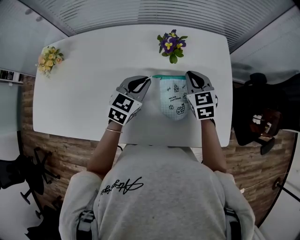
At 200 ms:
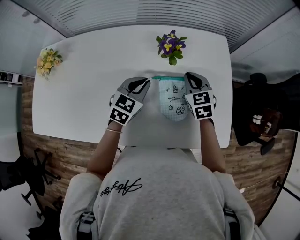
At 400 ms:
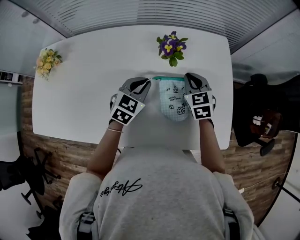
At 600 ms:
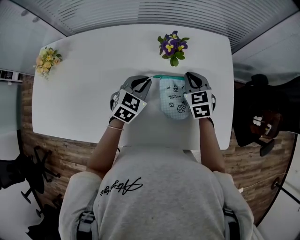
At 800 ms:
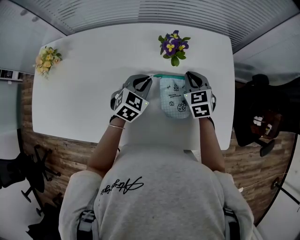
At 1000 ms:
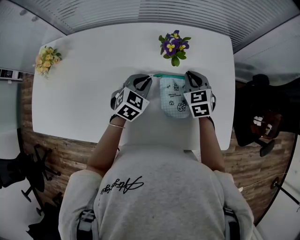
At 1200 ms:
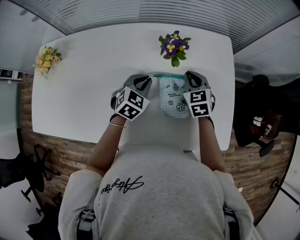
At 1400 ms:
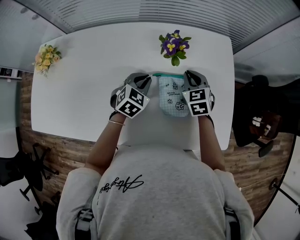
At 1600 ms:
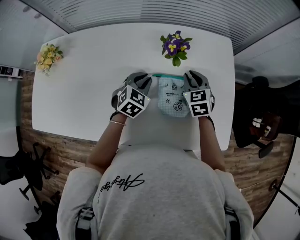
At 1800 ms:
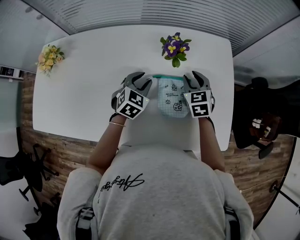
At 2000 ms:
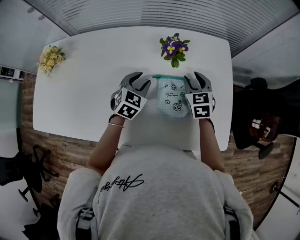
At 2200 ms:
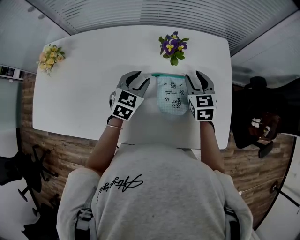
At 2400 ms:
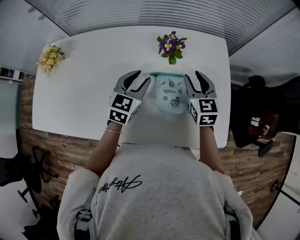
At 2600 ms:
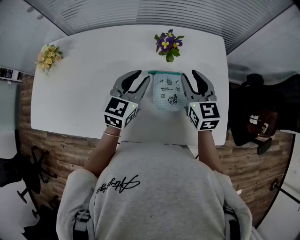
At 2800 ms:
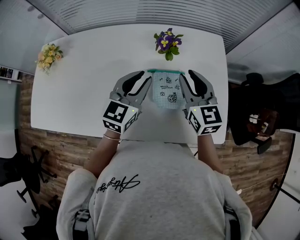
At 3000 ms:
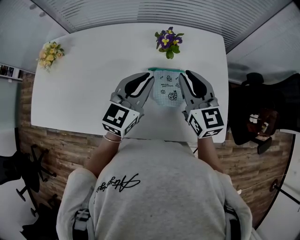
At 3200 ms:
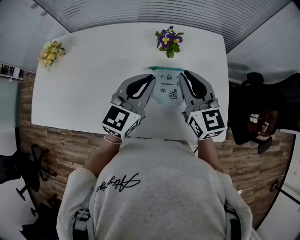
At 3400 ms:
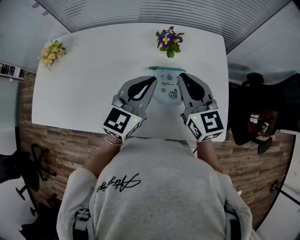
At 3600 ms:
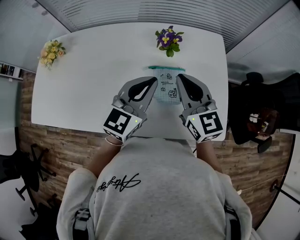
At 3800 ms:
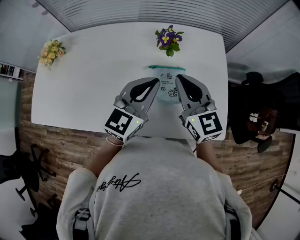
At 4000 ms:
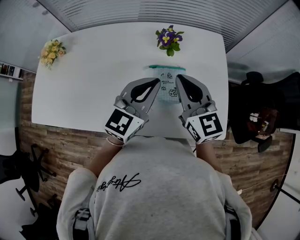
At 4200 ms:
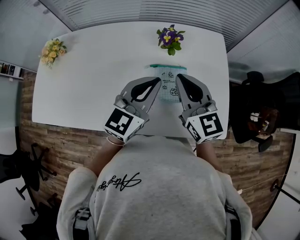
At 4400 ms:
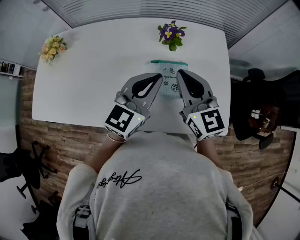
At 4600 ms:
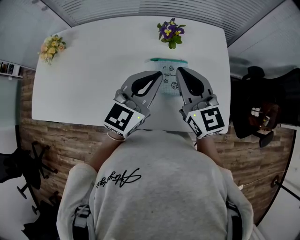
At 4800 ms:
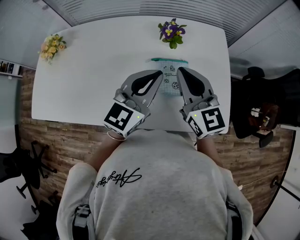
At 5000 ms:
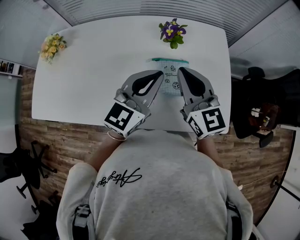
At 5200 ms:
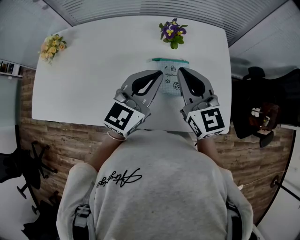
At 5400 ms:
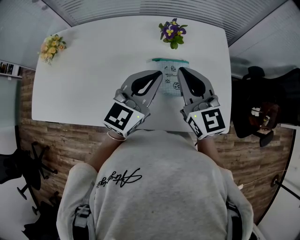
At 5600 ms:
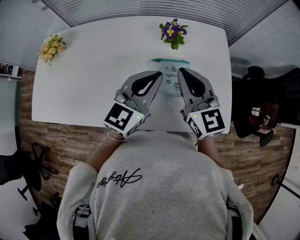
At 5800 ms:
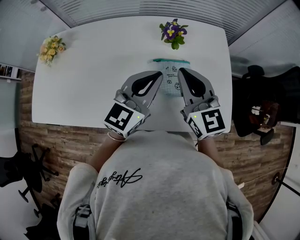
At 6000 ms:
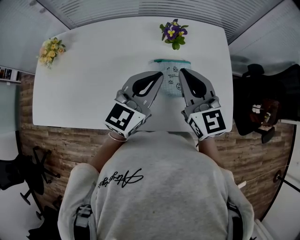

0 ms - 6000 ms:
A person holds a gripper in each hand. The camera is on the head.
0 ms - 1600 ms: The left gripper goes about 5 cm downward.
1600 ms - 3000 ms: Both grippers move upward and backward, roughly 20 cm. The left gripper tips its fingers upward by approximately 30 degrees; the right gripper changes its angle by roughly 30 degrees.
3000 ms - 4400 ms: The left gripper shifts by some 5 cm. The right gripper shifts by approximately 5 cm.
4400 ms - 6000 ms: There are only small adjustments of the grippers.

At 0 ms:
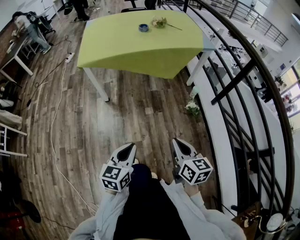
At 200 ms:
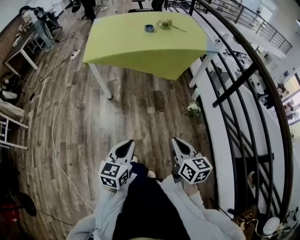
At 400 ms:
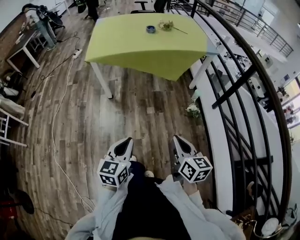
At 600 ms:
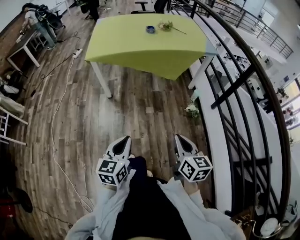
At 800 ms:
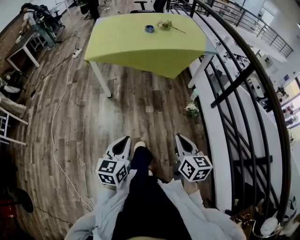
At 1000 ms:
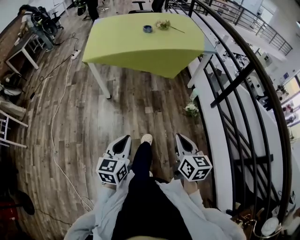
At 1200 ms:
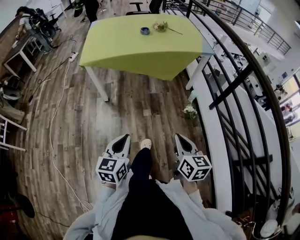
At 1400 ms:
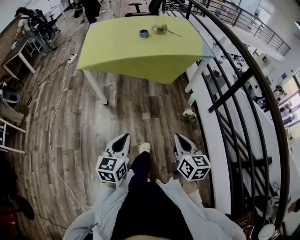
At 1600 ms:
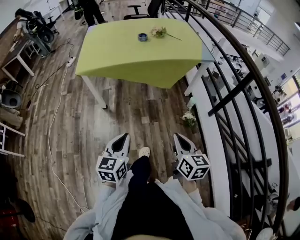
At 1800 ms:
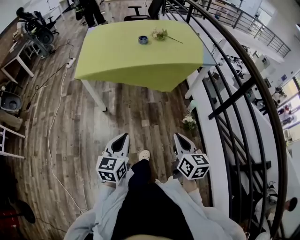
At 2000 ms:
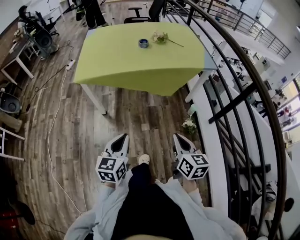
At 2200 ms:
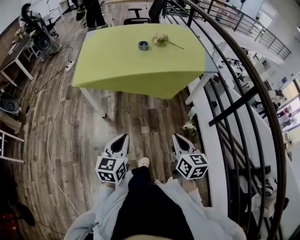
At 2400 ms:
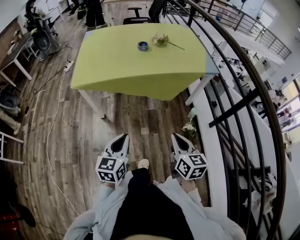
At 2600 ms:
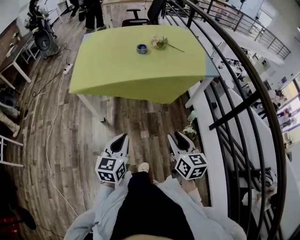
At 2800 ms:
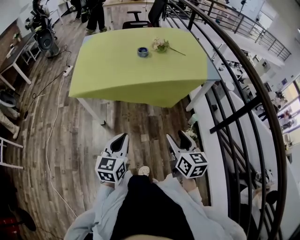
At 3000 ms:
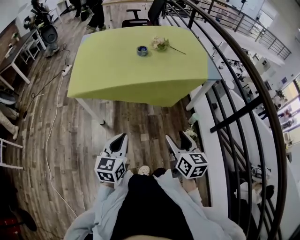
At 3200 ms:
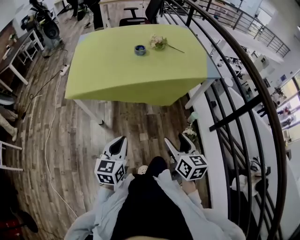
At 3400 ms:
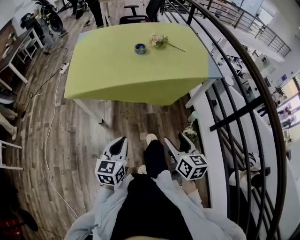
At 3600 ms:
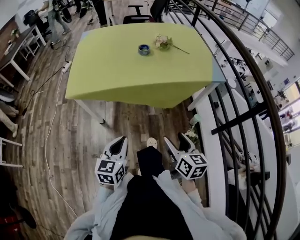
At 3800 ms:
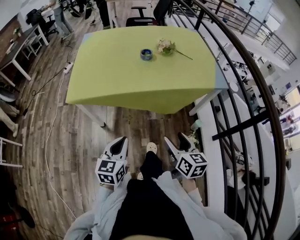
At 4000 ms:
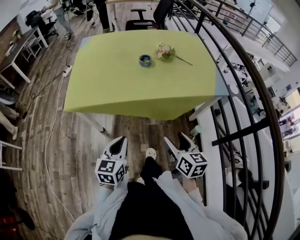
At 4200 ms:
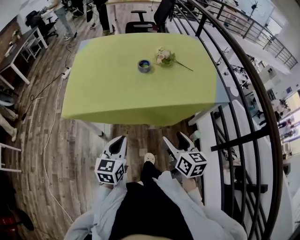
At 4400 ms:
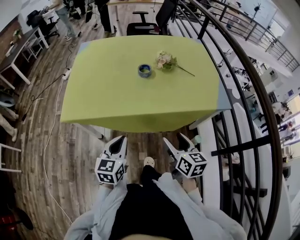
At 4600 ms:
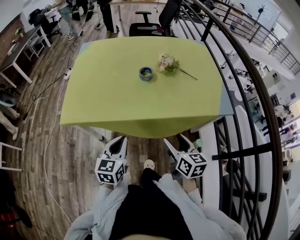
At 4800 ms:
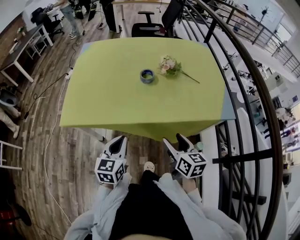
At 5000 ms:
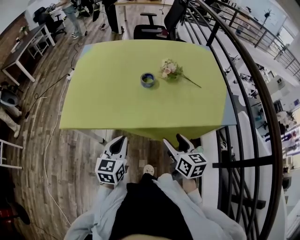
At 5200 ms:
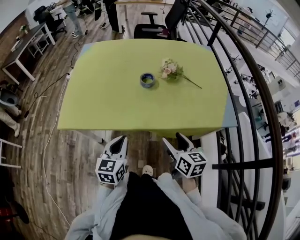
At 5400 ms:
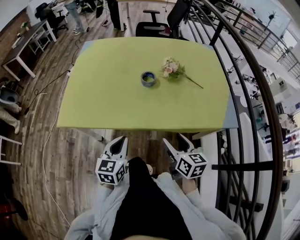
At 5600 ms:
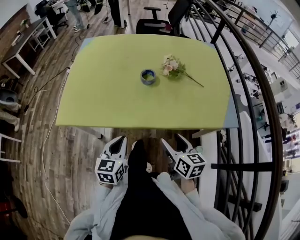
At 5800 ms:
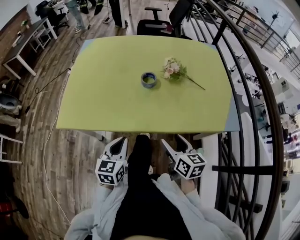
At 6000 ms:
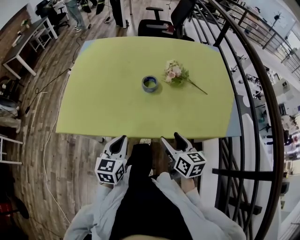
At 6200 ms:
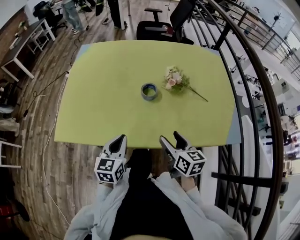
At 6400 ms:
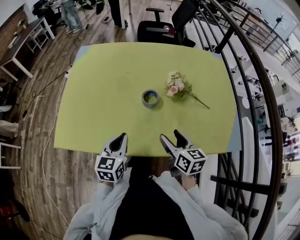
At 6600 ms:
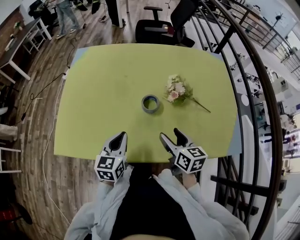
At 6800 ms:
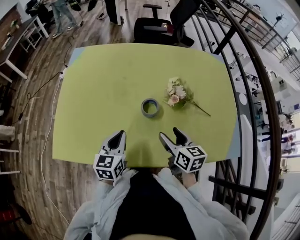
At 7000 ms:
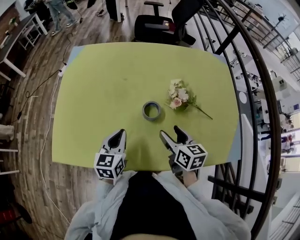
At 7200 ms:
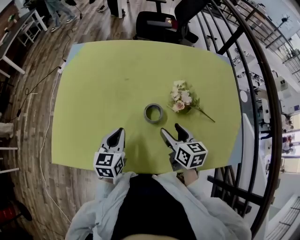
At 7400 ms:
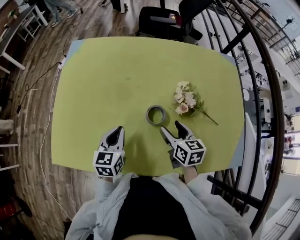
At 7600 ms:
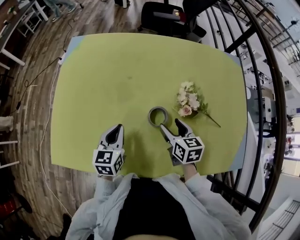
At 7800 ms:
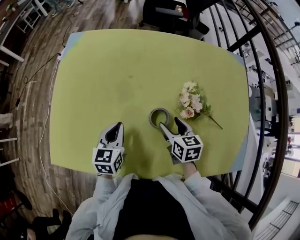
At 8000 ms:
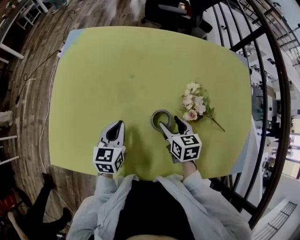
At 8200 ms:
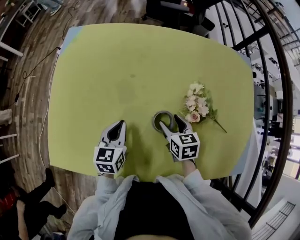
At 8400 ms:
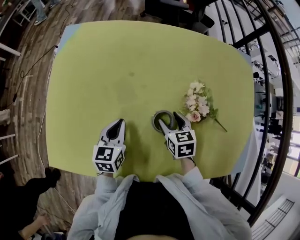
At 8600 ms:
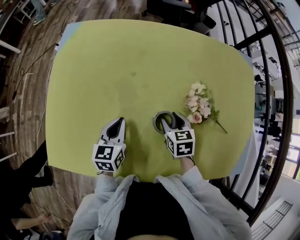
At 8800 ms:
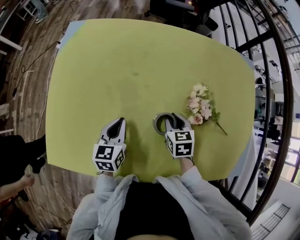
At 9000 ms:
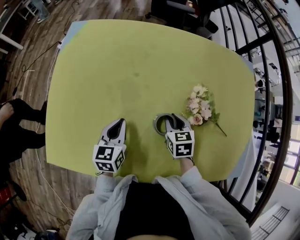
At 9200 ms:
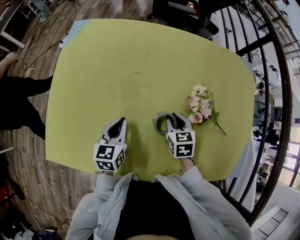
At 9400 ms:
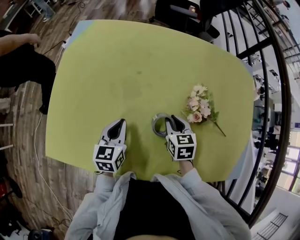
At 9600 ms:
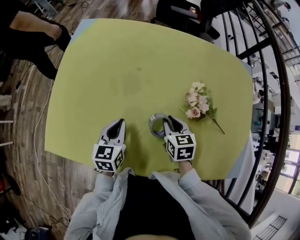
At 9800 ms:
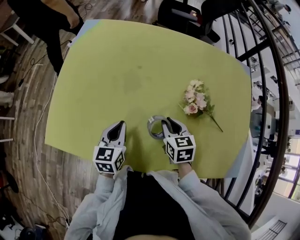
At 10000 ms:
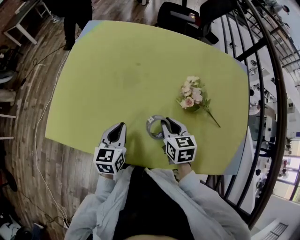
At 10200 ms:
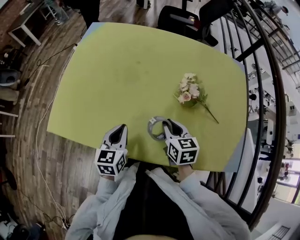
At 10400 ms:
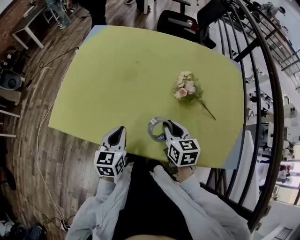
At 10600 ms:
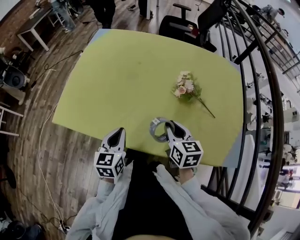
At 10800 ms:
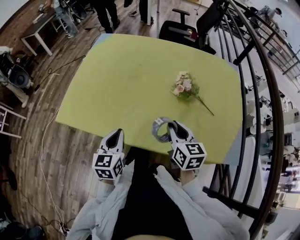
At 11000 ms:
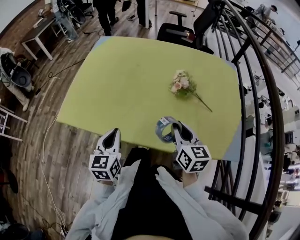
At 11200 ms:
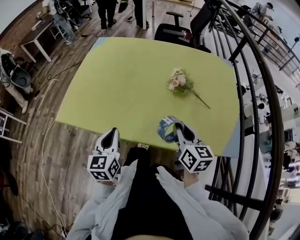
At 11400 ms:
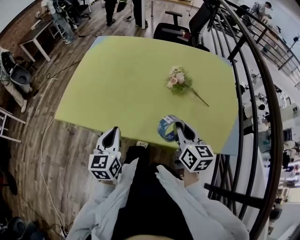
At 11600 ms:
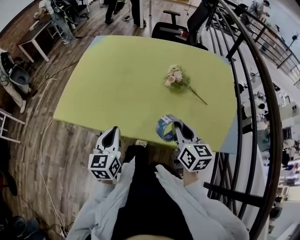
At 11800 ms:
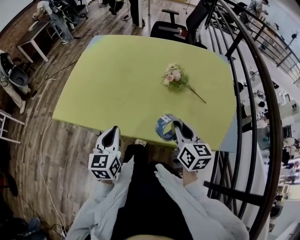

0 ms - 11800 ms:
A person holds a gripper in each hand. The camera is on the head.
0 ms - 1400 ms: The left gripper moves about 5 cm, while the right gripper is displaced to the right by some 5 cm.
1400 ms - 3000 ms: The grippers both shift forward by roughly 25 cm. The right gripper opens up.
3000 ms - 4400 ms: The grippers both shift forward by some 20 cm.
4400 ms - 6000 ms: The grippers both shift forward by approximately 15 cm.
6000 ms - 7400 ms: Both grippers travel together forward, approximately 25 cm.
7400 ms - 8800 ms: The right gripper is displaced downward and forward by some 15 cm, changes its angle by roughly 20 degrees, and closes; the left gripper shifts some 10 cm forward and downward.
8800 ms - 10400 ms: The right gripper travels backward and upward by approximately 20 cm. Meanwhile the left gripper shifts some 20 cm backward.
10400 ms - 11800 ms: The right gripper is displaced backward, upward and to the right by roughly 15 cm. Meanwhile the left gripper is displaced backward and upward by approximately 10 cm.

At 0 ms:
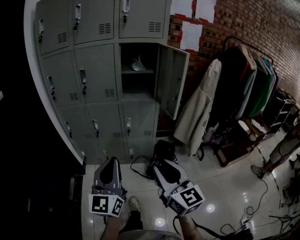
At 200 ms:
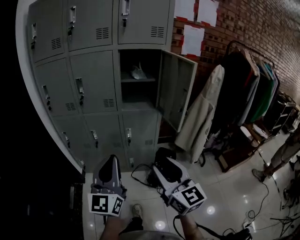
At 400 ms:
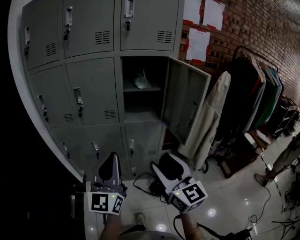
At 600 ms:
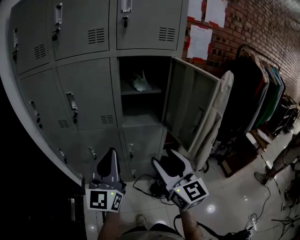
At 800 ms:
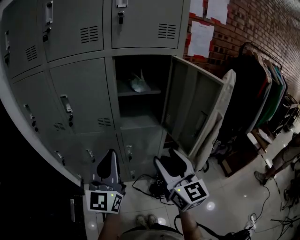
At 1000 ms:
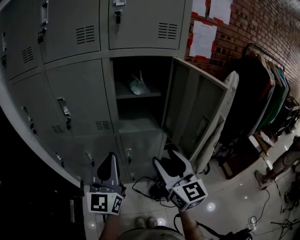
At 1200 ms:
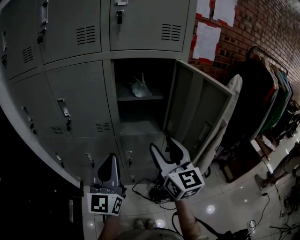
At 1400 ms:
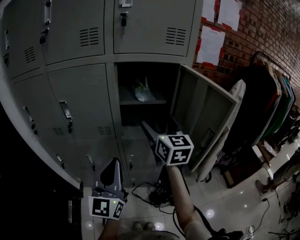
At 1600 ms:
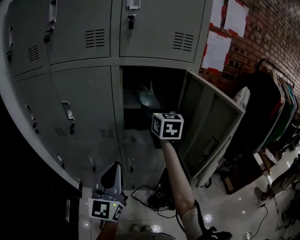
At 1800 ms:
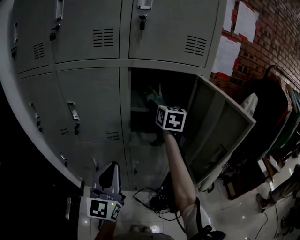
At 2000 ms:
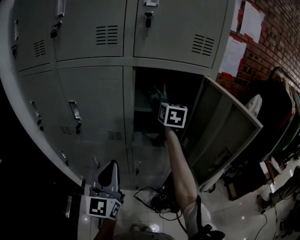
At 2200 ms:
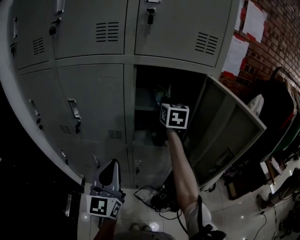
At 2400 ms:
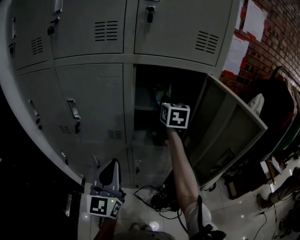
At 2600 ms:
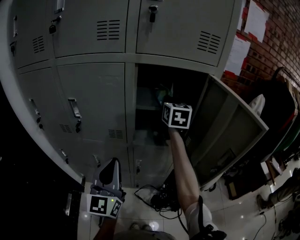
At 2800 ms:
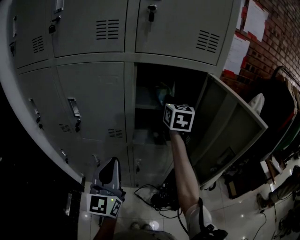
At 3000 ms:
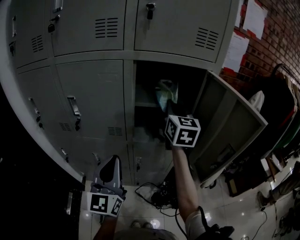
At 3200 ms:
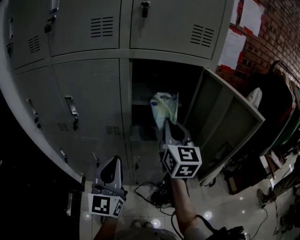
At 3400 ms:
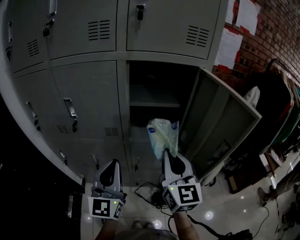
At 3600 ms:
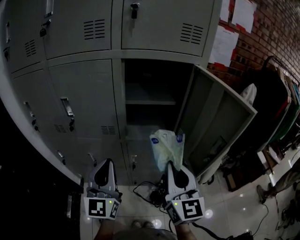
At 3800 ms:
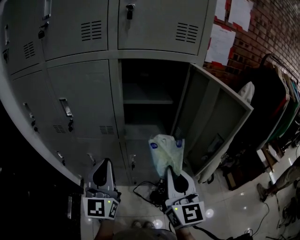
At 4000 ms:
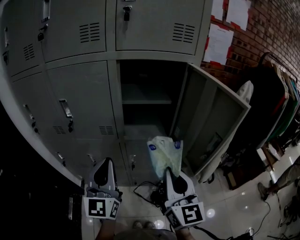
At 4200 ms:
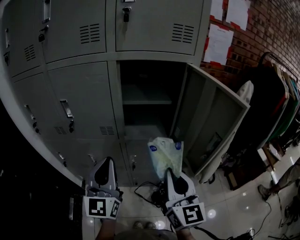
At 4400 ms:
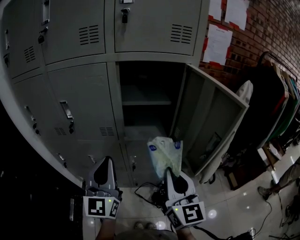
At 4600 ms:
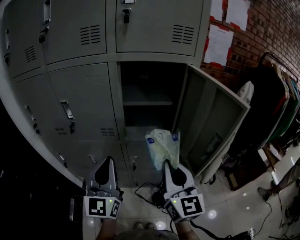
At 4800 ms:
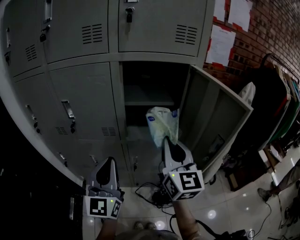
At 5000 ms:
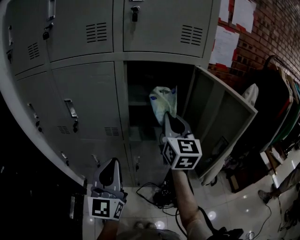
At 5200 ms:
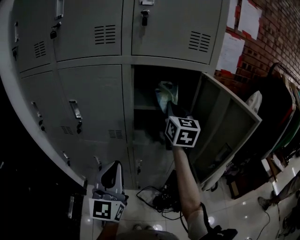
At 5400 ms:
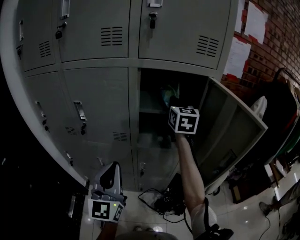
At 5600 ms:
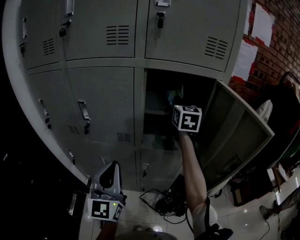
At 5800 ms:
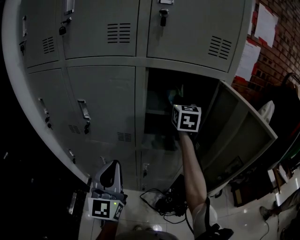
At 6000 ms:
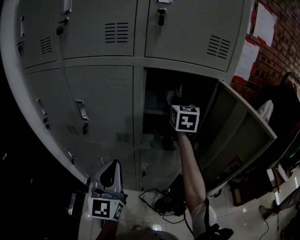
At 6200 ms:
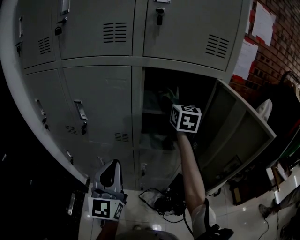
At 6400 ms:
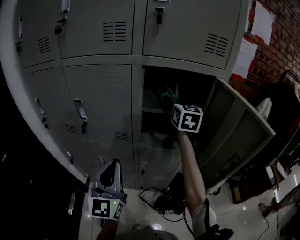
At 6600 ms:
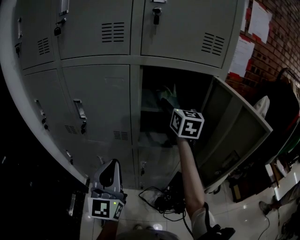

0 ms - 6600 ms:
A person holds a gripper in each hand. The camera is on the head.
0 ms - 1600 ms: The left gripper travels forward by some 35 cm; the right gripper moves forward, roughly 60 cm, and opens its fingers.
1600 ms - 3200 ms: The right gripper moves backward, roughly 10 cm, and closes.
3200 ms - 5000 ms: The right gripper moves some 20 cm backward and comes back.
5000 ms - 6600 ms: The right gripper heads forward, covering roughly 15 cm, and opens up.
